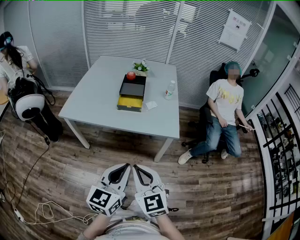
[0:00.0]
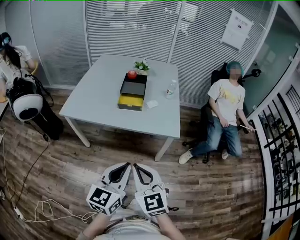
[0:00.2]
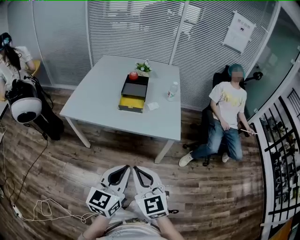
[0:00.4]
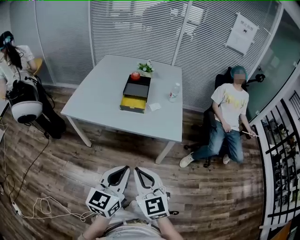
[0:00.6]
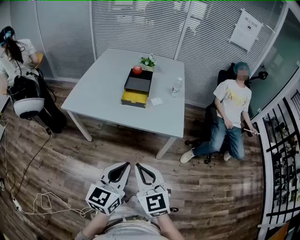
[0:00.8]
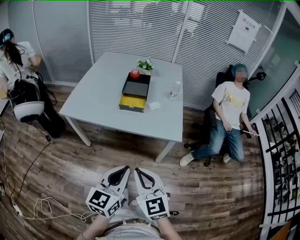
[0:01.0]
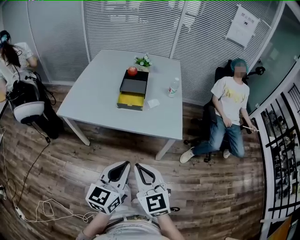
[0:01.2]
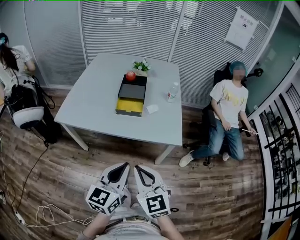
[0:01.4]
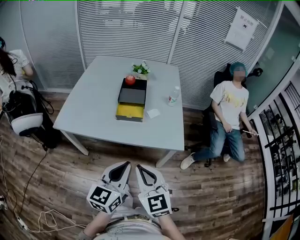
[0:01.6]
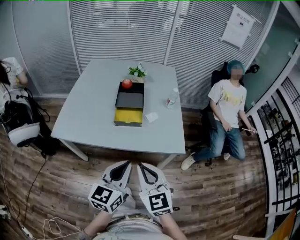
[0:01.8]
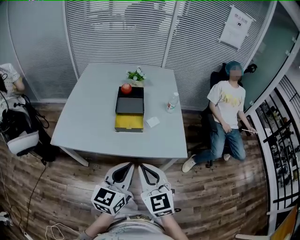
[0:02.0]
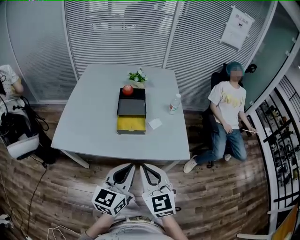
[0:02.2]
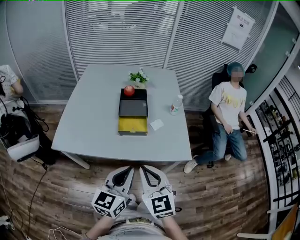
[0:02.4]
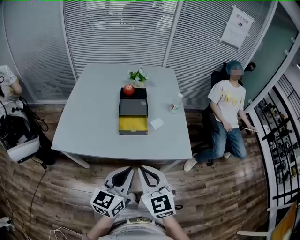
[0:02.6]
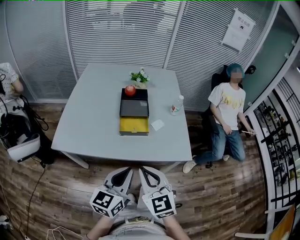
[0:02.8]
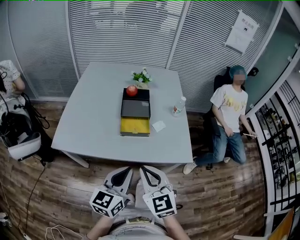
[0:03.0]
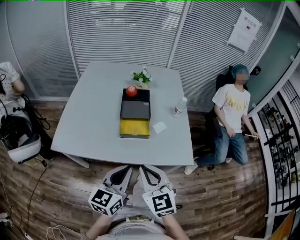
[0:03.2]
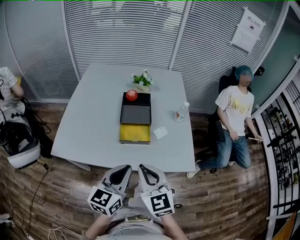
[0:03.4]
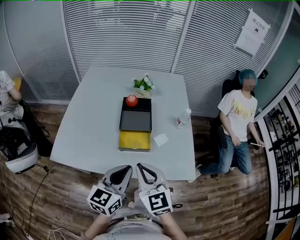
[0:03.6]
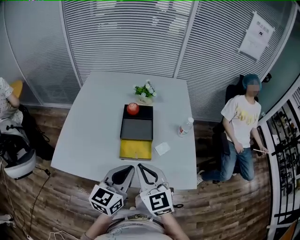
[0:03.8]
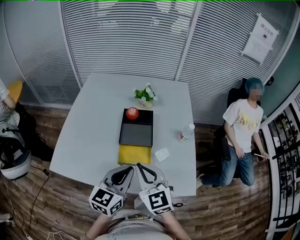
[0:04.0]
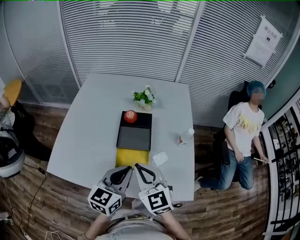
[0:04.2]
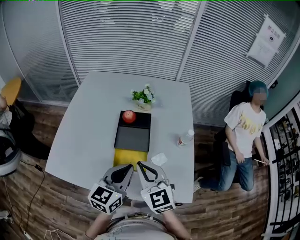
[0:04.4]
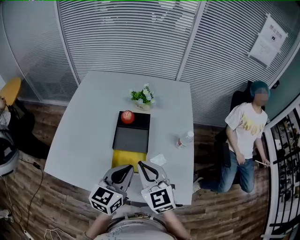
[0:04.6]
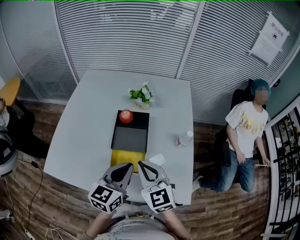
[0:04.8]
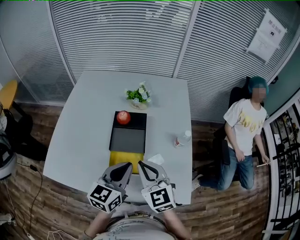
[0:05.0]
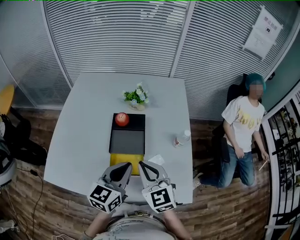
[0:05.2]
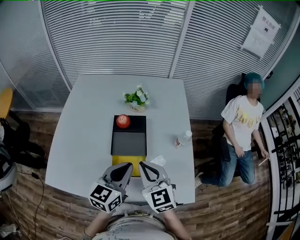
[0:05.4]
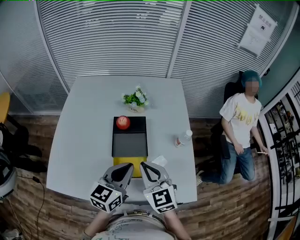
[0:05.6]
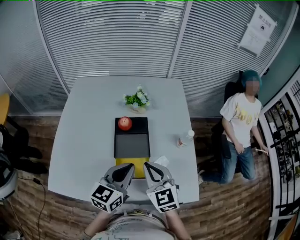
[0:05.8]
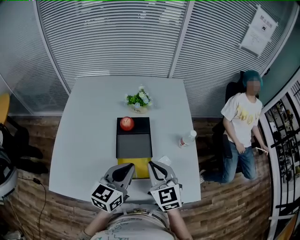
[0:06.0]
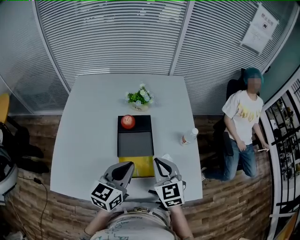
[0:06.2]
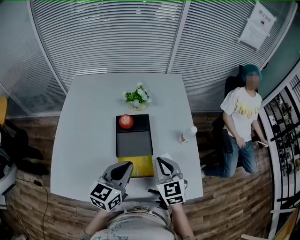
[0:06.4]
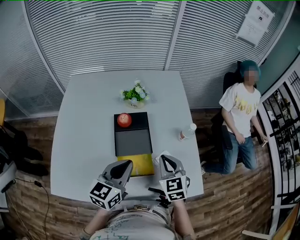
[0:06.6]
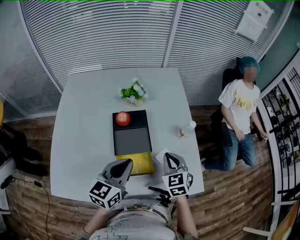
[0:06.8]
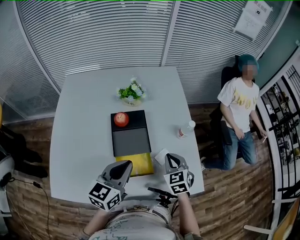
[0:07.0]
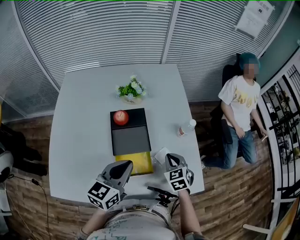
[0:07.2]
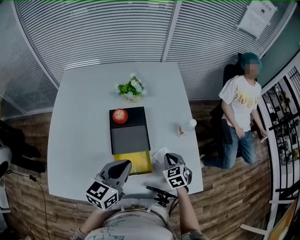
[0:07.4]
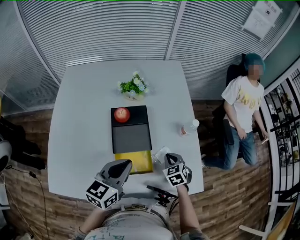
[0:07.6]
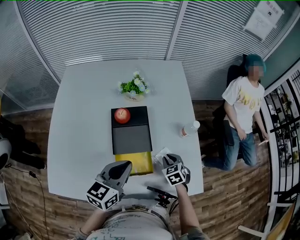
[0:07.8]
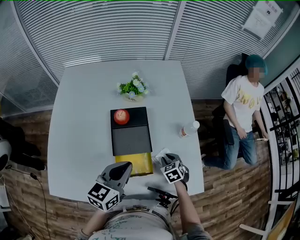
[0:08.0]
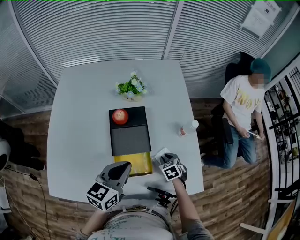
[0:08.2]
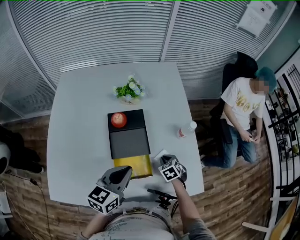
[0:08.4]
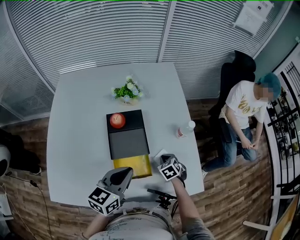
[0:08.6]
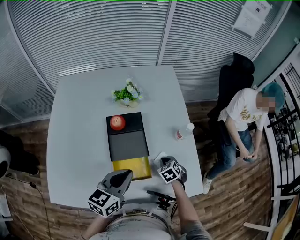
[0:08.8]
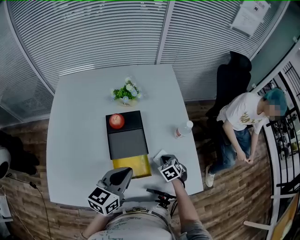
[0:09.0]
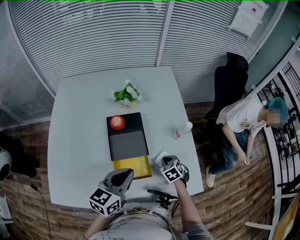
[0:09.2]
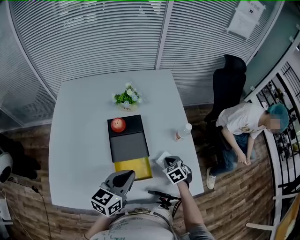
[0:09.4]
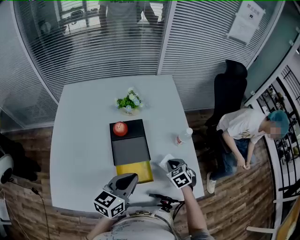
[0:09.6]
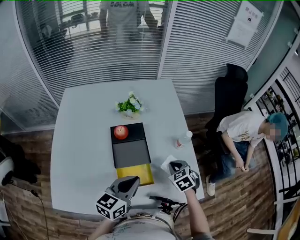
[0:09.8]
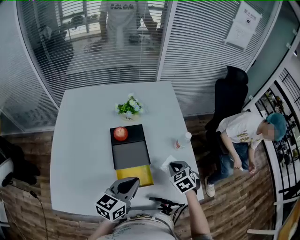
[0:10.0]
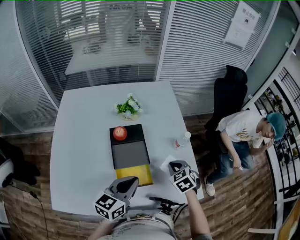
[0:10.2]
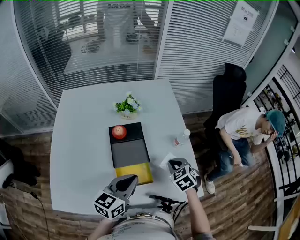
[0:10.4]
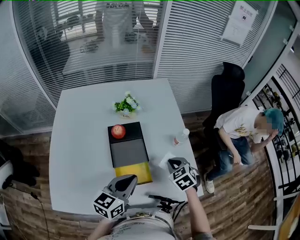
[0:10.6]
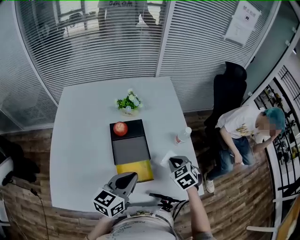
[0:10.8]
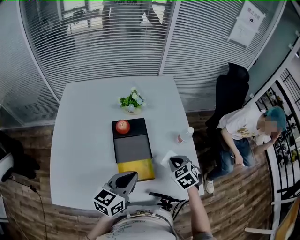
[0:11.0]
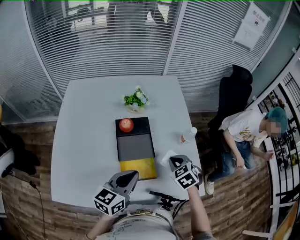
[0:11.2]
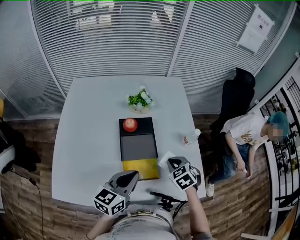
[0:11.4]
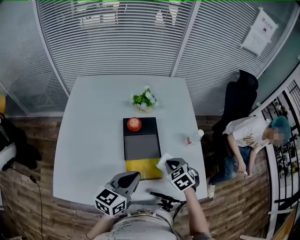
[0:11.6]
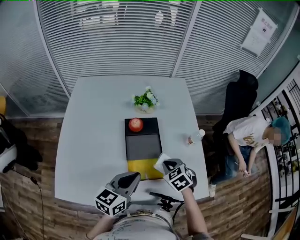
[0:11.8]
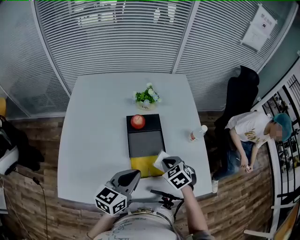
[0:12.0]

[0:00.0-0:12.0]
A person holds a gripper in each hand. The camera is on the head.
0:00.0 to 0:01.6: Both grippers travel together forward, about 15 cm.
0:01.6 to 0:03.0: Both grippers travel together forward and to the left, approximately 15 cm.
0:03.0 to 0:04.4: Both grippers travel together forward, some 30 cm.
0:04.4 to 0:06.0: Both grippers move forward, roughly 5 cm.
0:06.0 to 0:07.6: The right gripper moves downward and to the right, some 25 cm, and points its fingers some 30 degrees further downward.
0:07.6 to 0:09.0: The right gripper opens and closes again.
0:09.0 to 0:10.4: The right gripper goes roughly 15 cm upward.
0:10.4 to 0:12.0: The right gripper goes roughly 10 cm to the left. Meanwhile the left gripper travels to the left by about 5 cm.

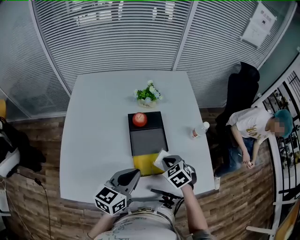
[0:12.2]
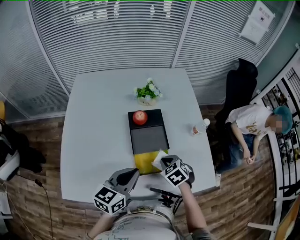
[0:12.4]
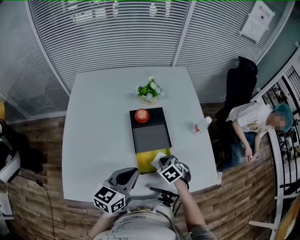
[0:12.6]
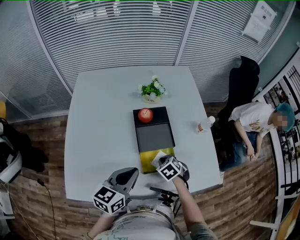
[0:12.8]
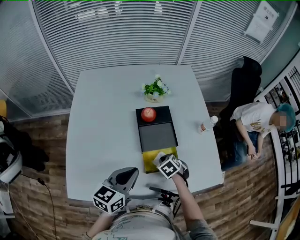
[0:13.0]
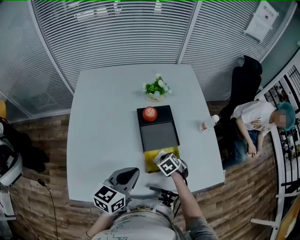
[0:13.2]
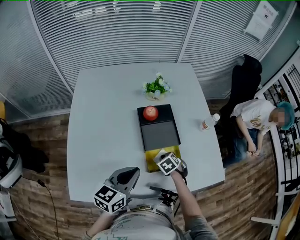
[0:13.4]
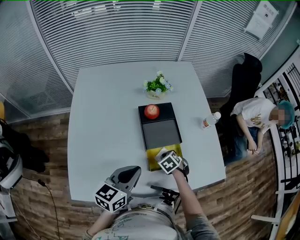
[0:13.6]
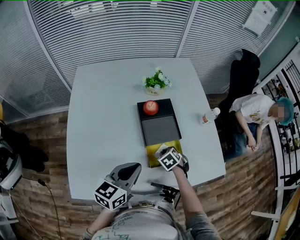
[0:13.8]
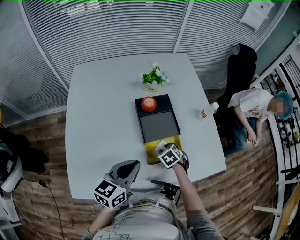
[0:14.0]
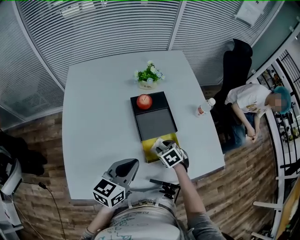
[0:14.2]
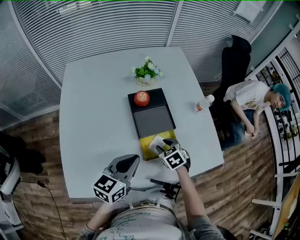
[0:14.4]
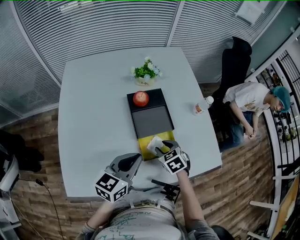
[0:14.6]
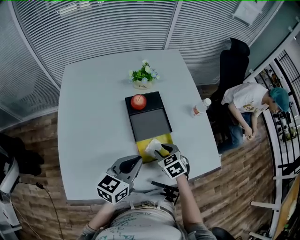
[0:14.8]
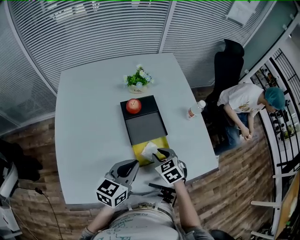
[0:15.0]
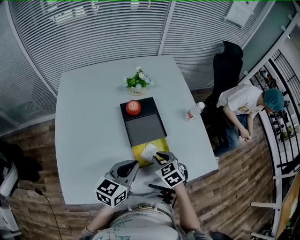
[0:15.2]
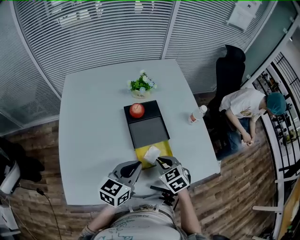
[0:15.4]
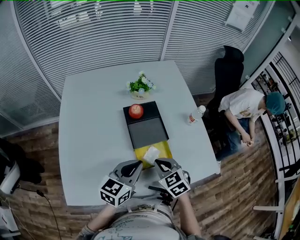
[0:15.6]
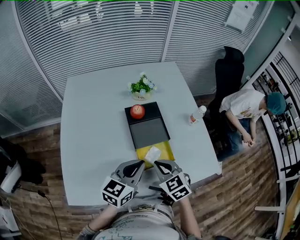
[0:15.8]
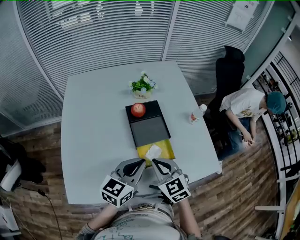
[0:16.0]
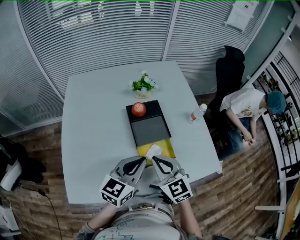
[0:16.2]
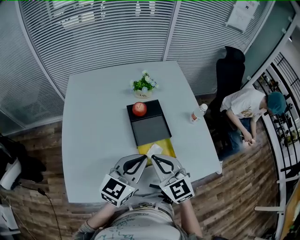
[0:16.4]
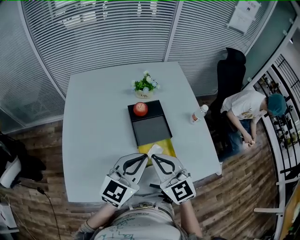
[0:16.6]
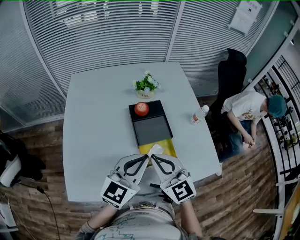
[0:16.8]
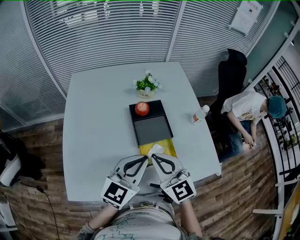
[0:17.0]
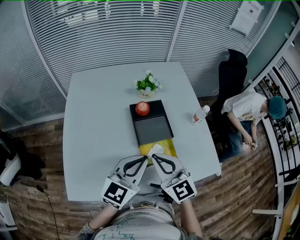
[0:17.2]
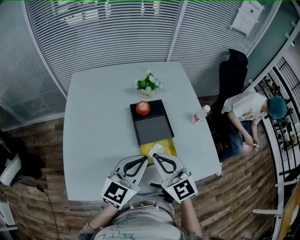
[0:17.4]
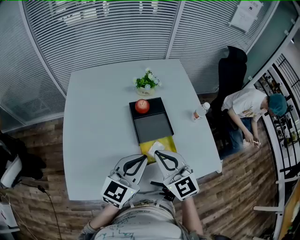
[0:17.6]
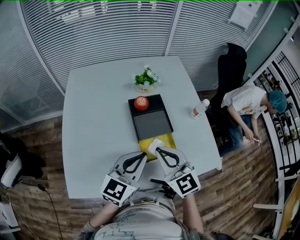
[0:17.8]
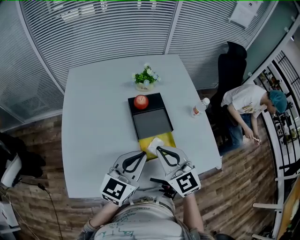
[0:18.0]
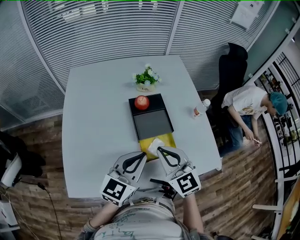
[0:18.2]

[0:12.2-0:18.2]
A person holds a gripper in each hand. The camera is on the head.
0:12.2 to 0:13.8: The right gripper travels downward and to the left by approximately 15 cm, while the left gripper shifts approximately 10 cm to the left.
0:13.8 to 0:15.2: The right gripper moves upward, approximately 10 cm; the left gripper is displaced to the right by roughly 5 cm.
0:15.2 to 0:16.6: The left gripper moves upward, roughly 10 cm, and changes its angle by some 20 degrees. The right gripper is displaced upward by roughly 20 cm, and tilts its fingers some 40 degrees upward.
0:16.6 to 0:18.2: The grippers stay close to where they were, moving slightly.

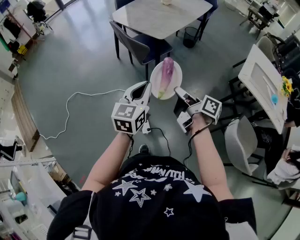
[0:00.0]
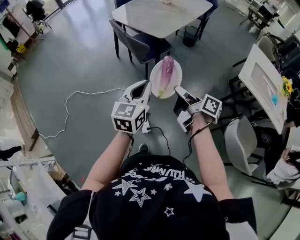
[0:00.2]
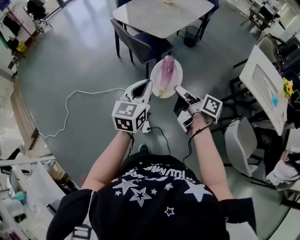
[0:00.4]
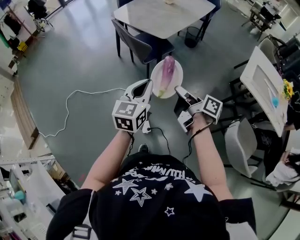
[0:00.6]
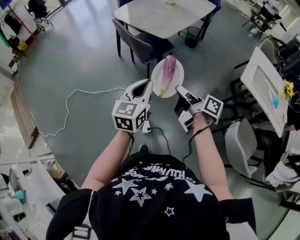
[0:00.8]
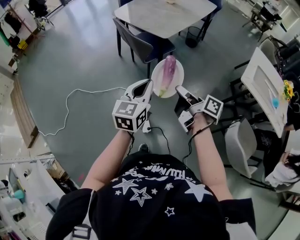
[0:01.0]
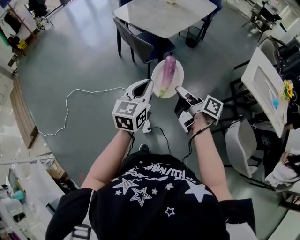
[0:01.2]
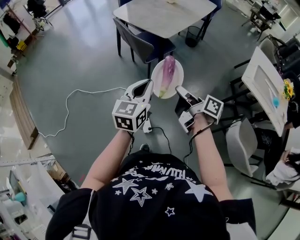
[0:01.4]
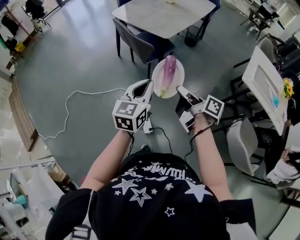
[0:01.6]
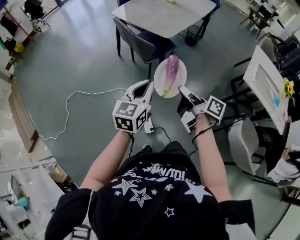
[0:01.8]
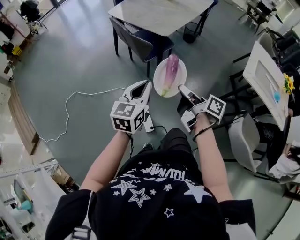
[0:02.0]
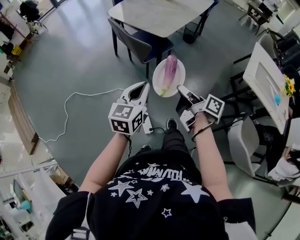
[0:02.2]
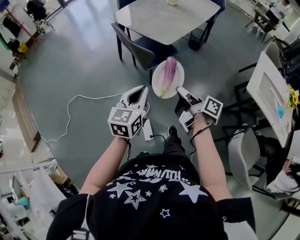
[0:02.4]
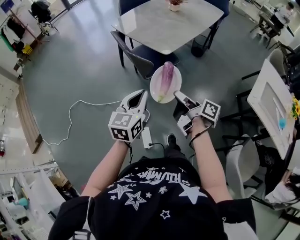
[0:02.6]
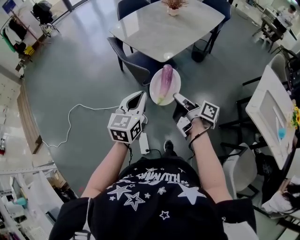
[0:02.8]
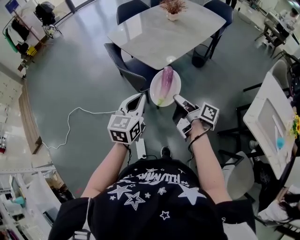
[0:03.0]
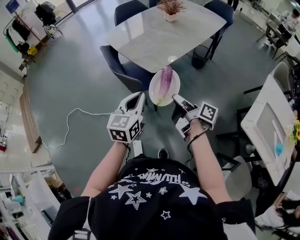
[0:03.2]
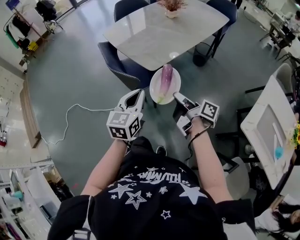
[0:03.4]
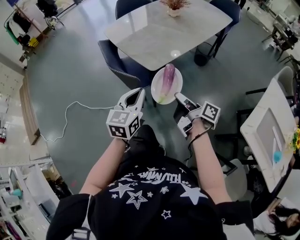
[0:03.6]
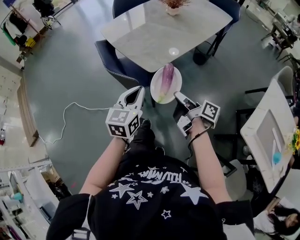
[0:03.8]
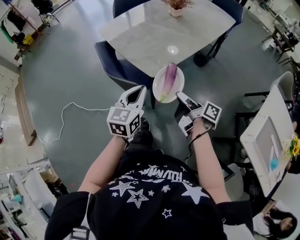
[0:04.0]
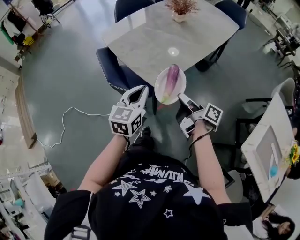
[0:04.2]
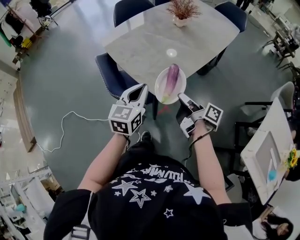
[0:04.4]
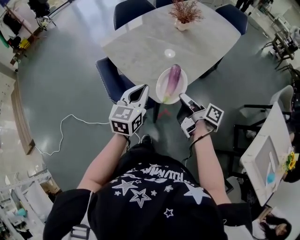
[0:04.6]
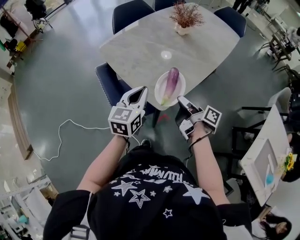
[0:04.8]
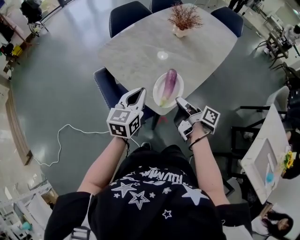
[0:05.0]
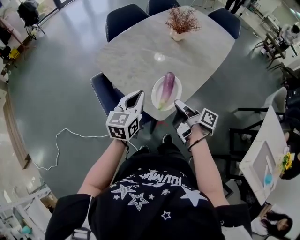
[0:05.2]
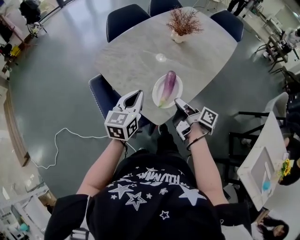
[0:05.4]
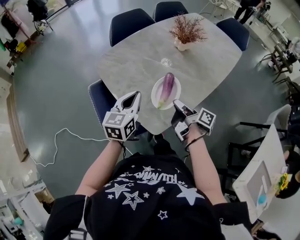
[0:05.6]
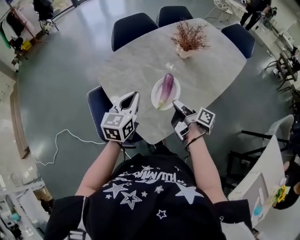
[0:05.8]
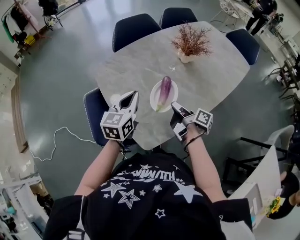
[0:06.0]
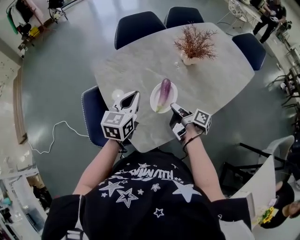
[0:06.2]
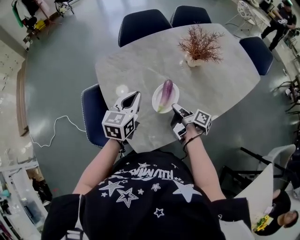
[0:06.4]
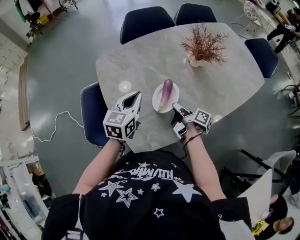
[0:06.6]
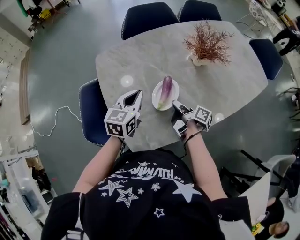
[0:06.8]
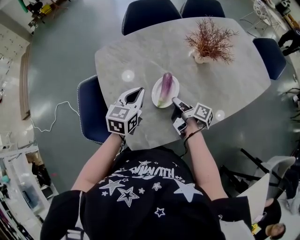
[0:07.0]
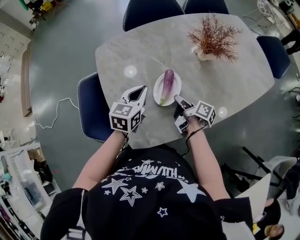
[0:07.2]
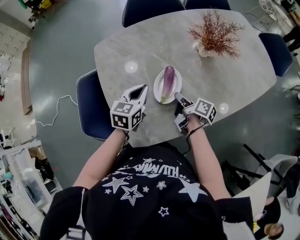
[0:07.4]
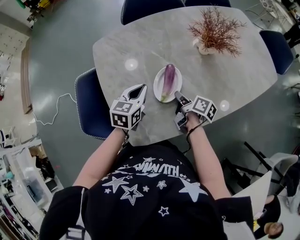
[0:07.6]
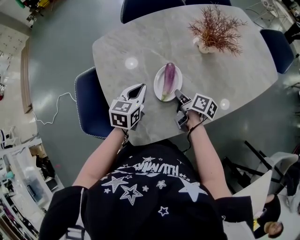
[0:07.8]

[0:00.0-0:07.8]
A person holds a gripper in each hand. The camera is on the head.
0:01.6 to 0:03.2: The left gripper shifts by approximately 25 cm.
0:03.2 to 0:04.6: The left gripper moves approximately 25 cm.
0:04.6 to 0:06.2: The left gripper ends up roughly 25 cm from where it was.
0:06.2 to 0:07.8: The left gripper heads downward, covering approximately 10 cm.
